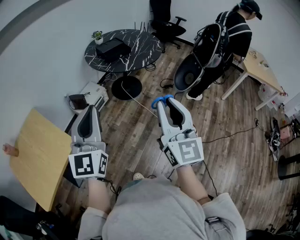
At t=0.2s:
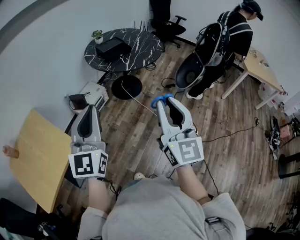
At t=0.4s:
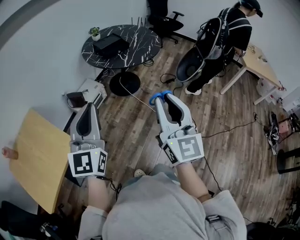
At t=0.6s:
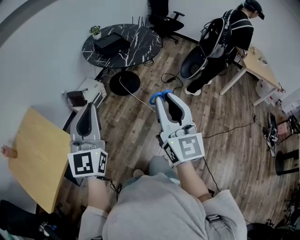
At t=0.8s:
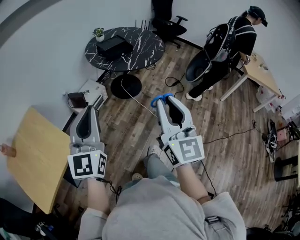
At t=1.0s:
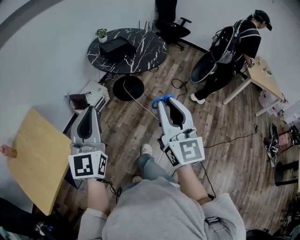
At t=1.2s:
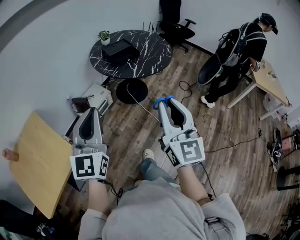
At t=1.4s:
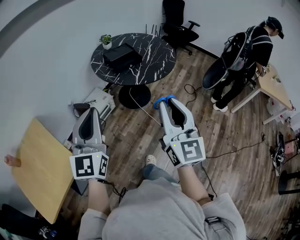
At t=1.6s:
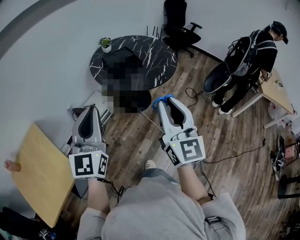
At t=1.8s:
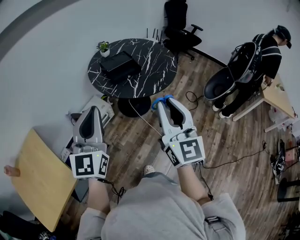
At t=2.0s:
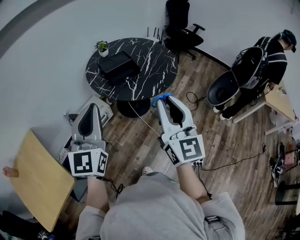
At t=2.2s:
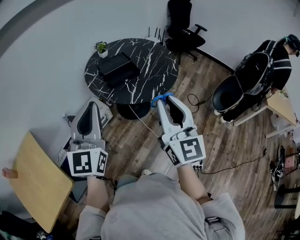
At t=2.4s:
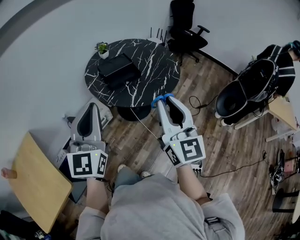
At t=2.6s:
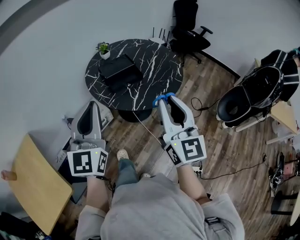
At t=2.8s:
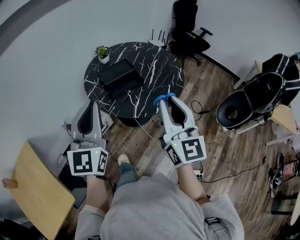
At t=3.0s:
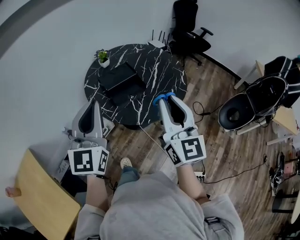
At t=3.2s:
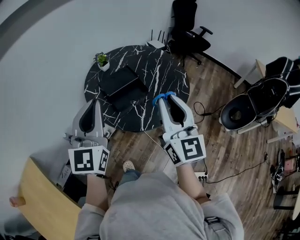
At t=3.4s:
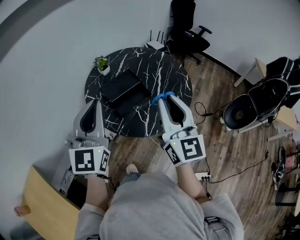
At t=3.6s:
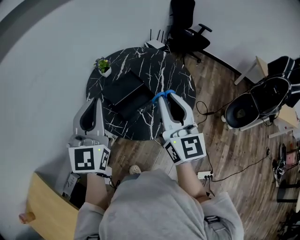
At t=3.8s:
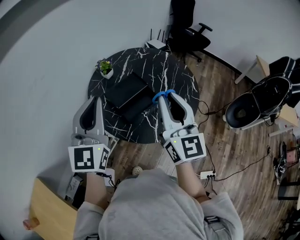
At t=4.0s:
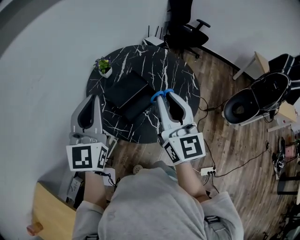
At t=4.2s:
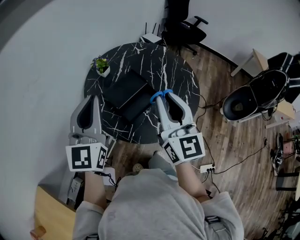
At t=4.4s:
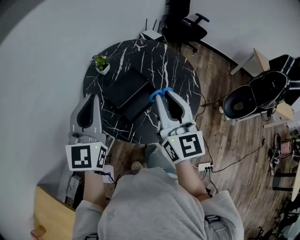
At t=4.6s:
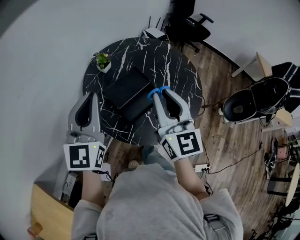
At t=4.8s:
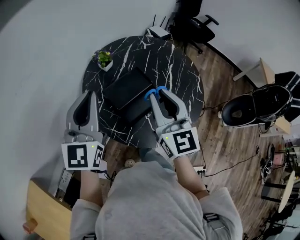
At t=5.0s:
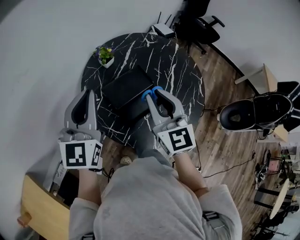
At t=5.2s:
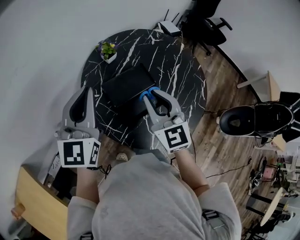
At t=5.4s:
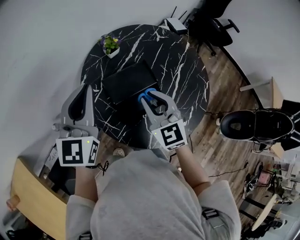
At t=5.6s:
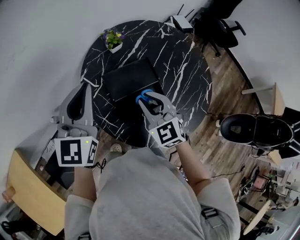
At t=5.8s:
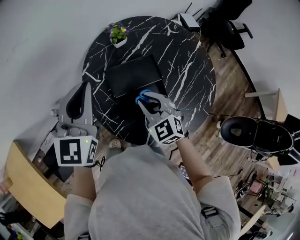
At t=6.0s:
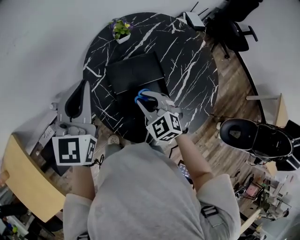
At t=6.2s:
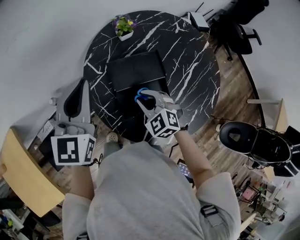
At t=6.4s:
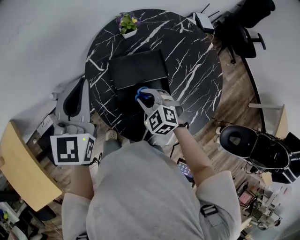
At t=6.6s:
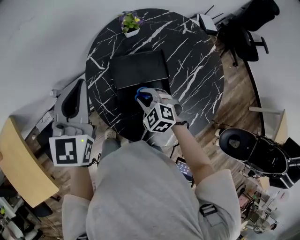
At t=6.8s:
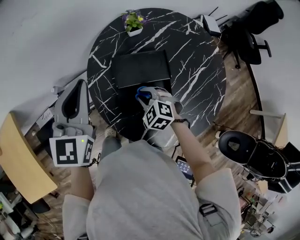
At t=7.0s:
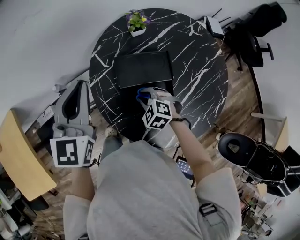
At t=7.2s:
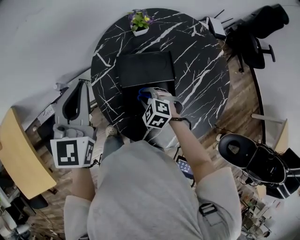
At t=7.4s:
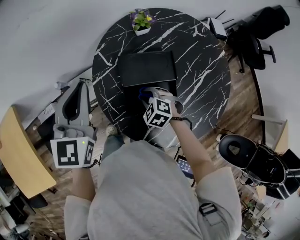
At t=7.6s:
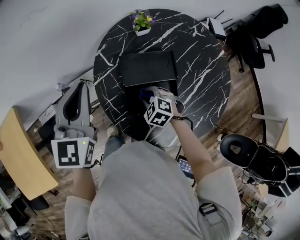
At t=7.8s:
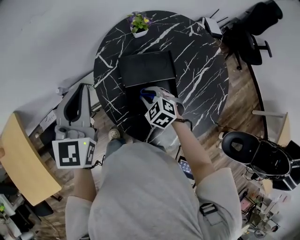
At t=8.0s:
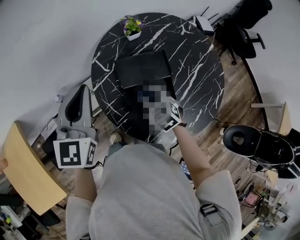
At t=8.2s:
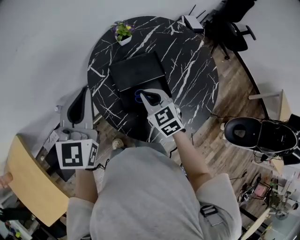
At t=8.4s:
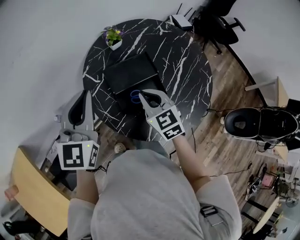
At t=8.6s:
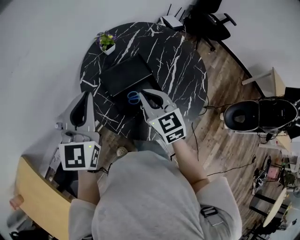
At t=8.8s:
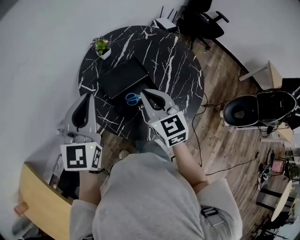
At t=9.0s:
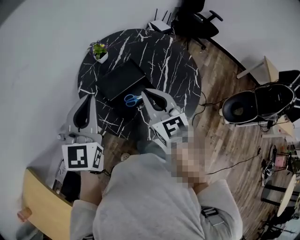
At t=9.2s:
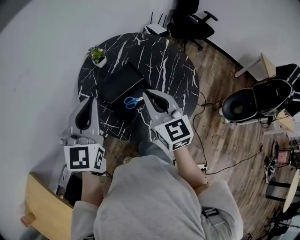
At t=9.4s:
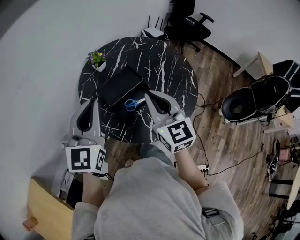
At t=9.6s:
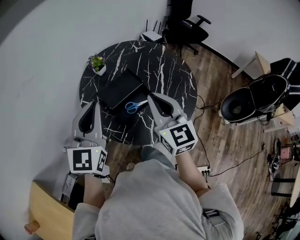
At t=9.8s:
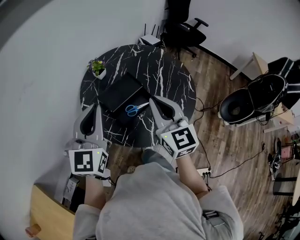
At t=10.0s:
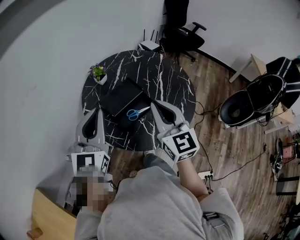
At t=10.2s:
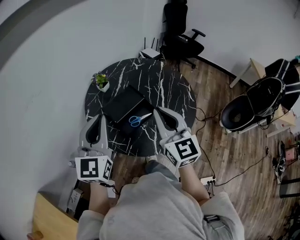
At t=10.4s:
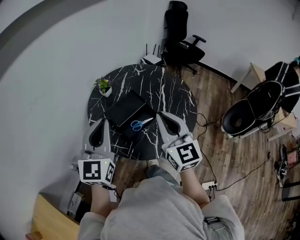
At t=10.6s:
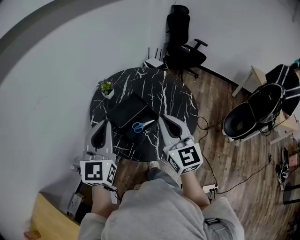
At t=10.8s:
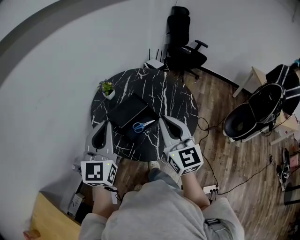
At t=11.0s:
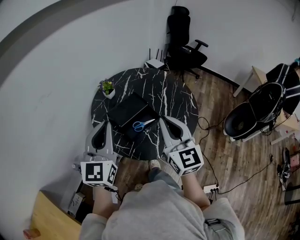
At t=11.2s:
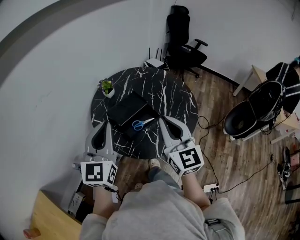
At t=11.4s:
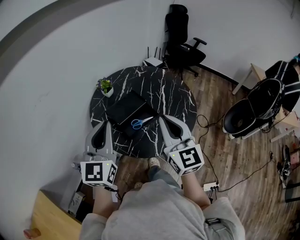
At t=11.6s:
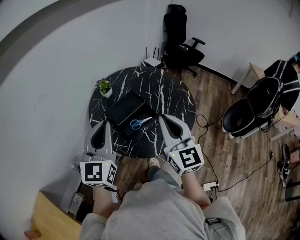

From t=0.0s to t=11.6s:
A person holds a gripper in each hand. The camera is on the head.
From t=0.0s to t=1.4s: The two grippers go some 15 cm forward.
From t=1.4s to t=2.8s: The grippers both shift forward by approximately 30 cm.
From t=2.8s to t=4.4s: The grippers both shift forward and to the left by about 30 cm.
From t=4.4s to t=5.8s: The left gripper moves downward, approximately 5 cm, and rotates about 20 degrees; the right gripper shifts approximately 25 cm downward, and tips its fingers downward by about 40 degrees.
From t=5.8s to t=7.2s: The right gripper goes approximately 15 cm downward, and angles its fingers downward, by some 30 degrees.
From t=7.2s to t=8.8s: The left gripper ends up some 10 cm from where it was, and rotates some 30 degrees. Meanwhile the right gripper goes about 25 cm upward, and tips its fingers upward by about 50 degrees.
From t=8.8s to t=10.2s: The right gripper is displaced upward and backward by approximately 15 cm, and swivels about 20 degrees.
From t=10.2s to t=11.6s: The left gripper moves about 5 cm; the right gripper heads backward, covering some 5 cm.

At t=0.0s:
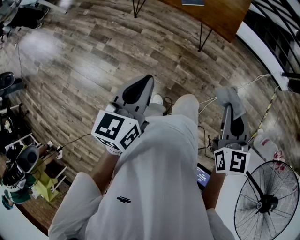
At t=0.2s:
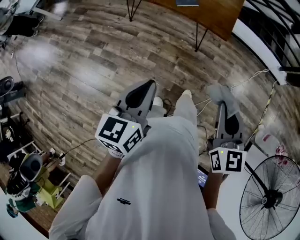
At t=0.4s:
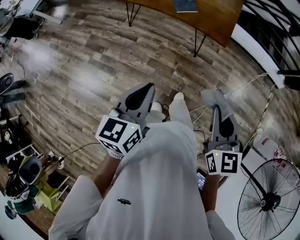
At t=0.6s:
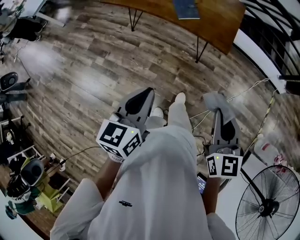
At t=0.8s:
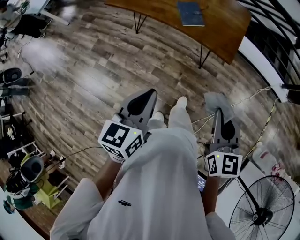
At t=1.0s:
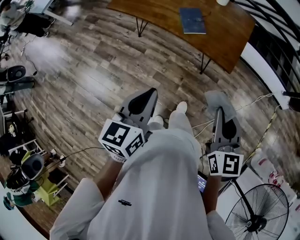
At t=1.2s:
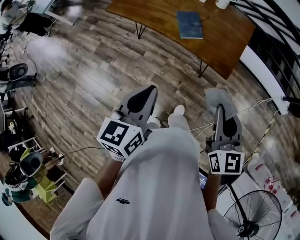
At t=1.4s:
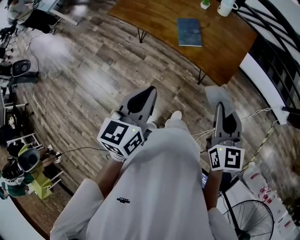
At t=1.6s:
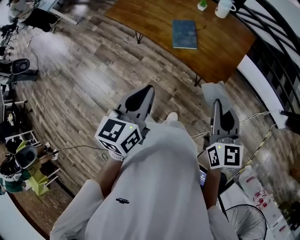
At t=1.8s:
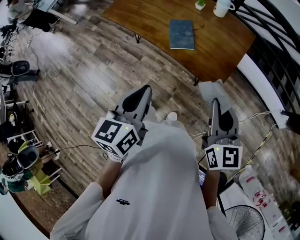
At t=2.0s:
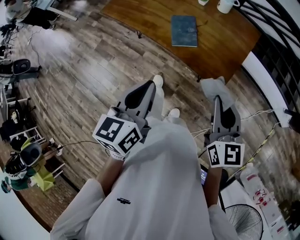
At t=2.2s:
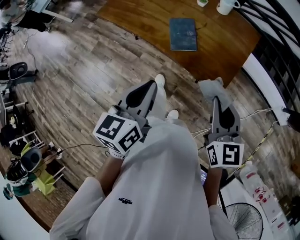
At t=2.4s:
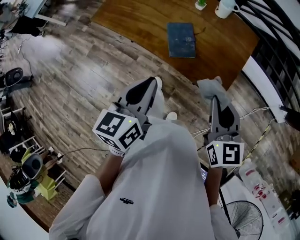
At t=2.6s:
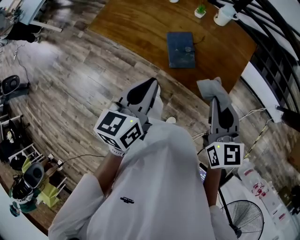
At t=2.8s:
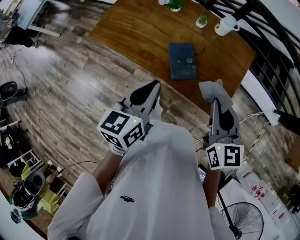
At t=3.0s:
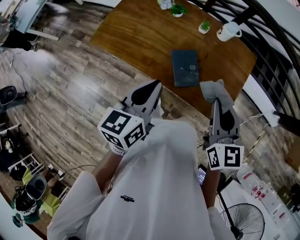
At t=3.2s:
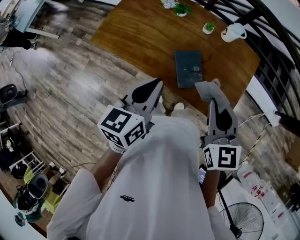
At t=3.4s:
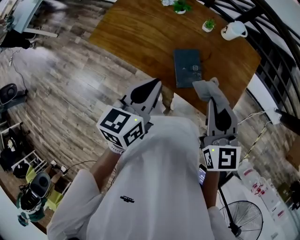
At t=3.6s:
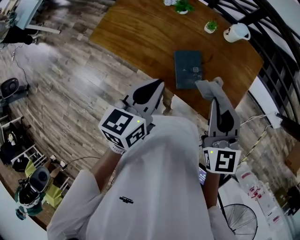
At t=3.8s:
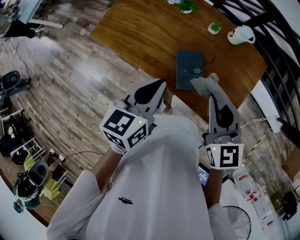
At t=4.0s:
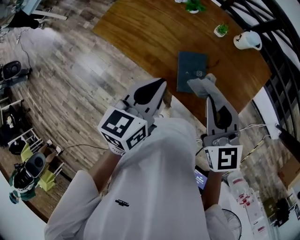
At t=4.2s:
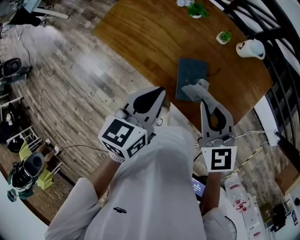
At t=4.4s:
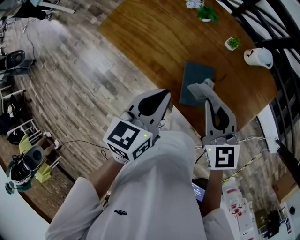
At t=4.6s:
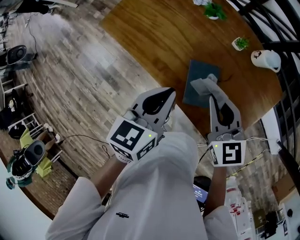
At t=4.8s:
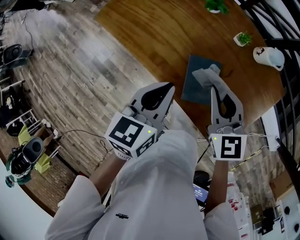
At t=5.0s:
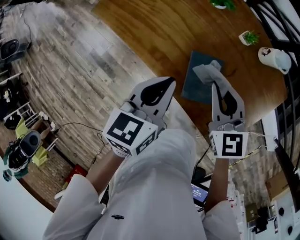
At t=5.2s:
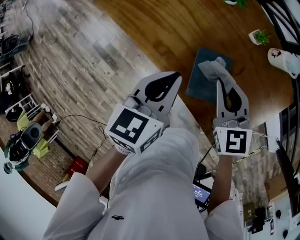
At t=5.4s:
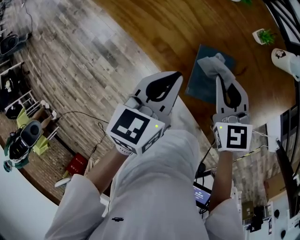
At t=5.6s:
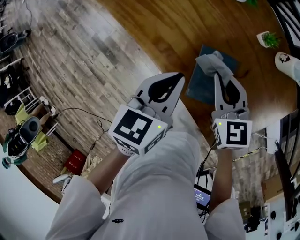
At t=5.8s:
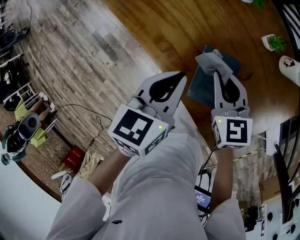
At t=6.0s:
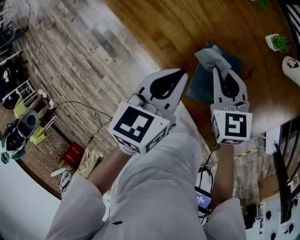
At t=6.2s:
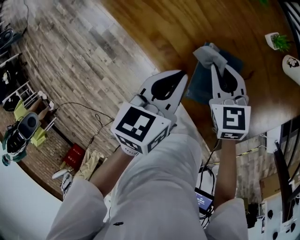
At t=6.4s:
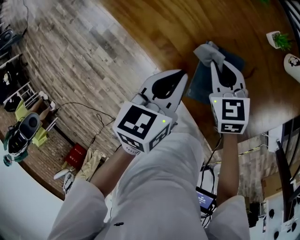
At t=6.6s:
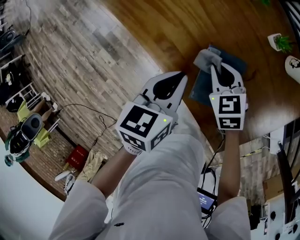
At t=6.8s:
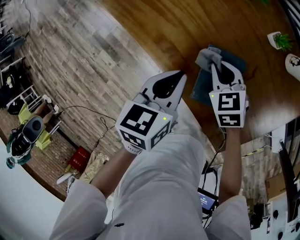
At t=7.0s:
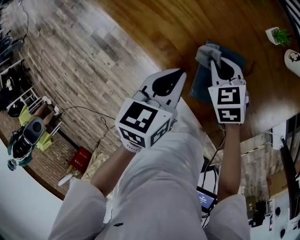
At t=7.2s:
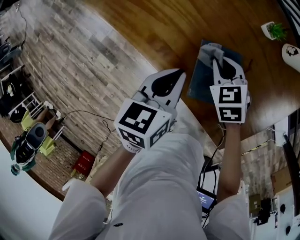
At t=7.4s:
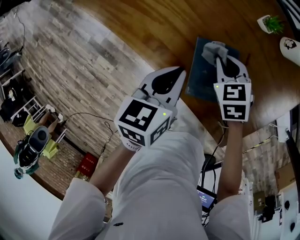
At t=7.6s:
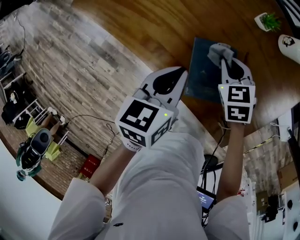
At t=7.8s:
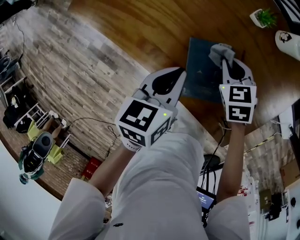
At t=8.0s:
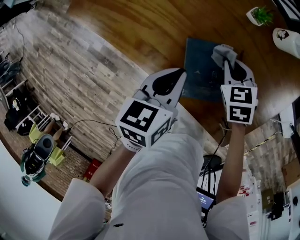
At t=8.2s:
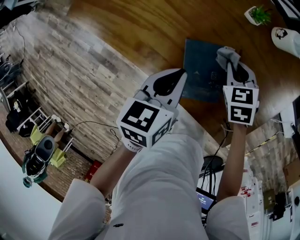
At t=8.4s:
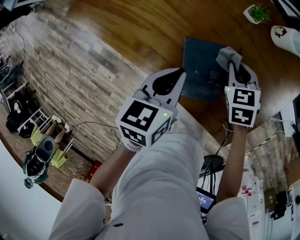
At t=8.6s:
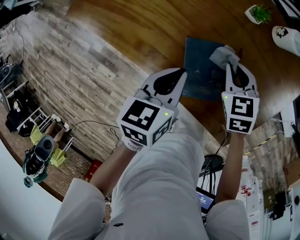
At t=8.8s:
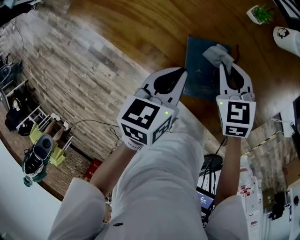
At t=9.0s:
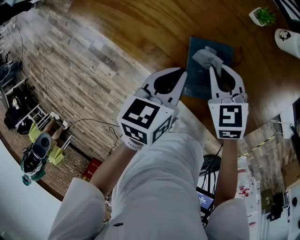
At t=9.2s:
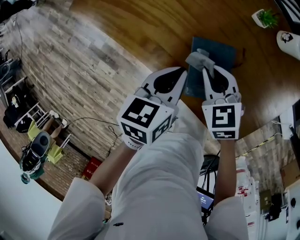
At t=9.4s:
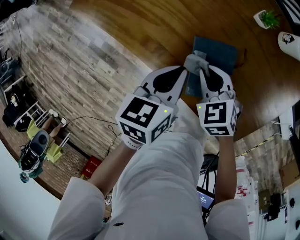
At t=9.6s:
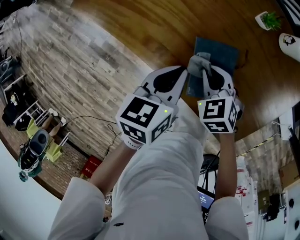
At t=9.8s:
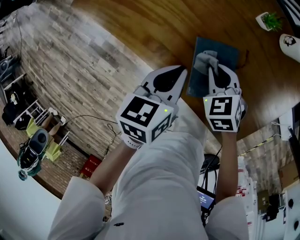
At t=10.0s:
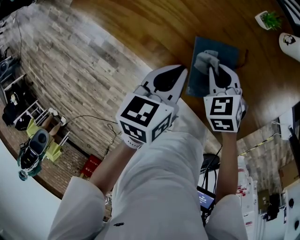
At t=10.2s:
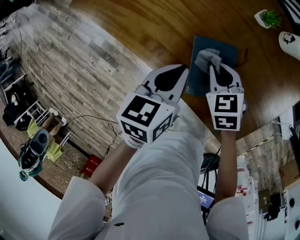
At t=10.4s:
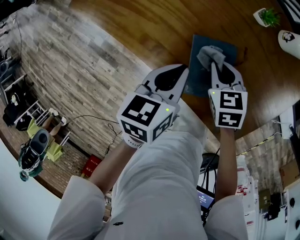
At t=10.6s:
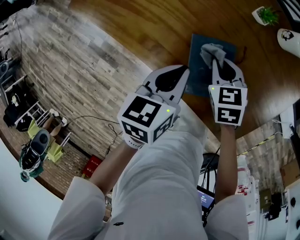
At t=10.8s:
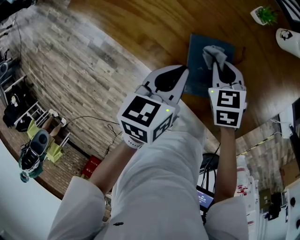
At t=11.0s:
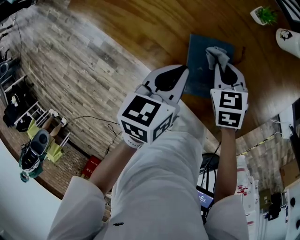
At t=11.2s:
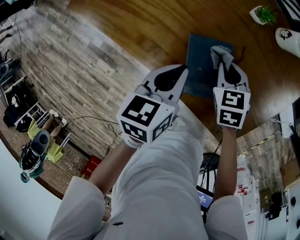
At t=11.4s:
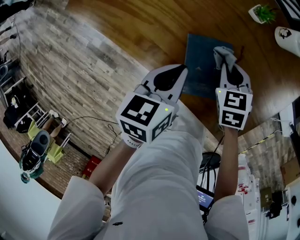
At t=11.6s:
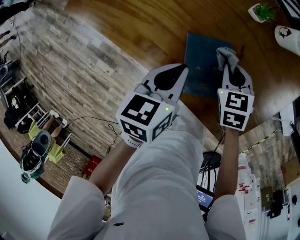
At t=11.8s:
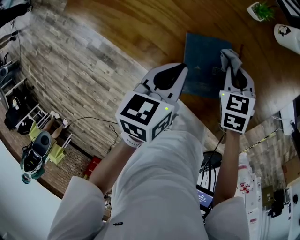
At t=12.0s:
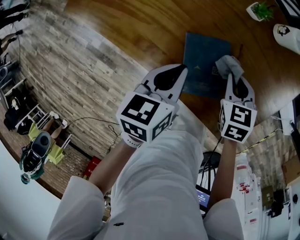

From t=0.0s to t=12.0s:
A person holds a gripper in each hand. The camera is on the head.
From t=0.0s to t=1.6s: Both grippers travel together forward, roughly 25 cm.
From t=1.6s to t=3.0s: The right gripper moves forward and to the left, approximately 25 cm, while the left gripper goes about 25 cm forward.
From t=3.0s to t=4.4s: The two grippers go some 15 cm forward and downward. The right gripper turns by some 30 degrees.
From t=4.4s to t=6.0s: Both grippers move downward, about 15 cm.
From t=6.0s to t=7.6s: The right gripper moves downward and to the right, about 10 cm, and rotates approximately 20 degrees.
From t=7.6s to t=9.0s: The right gripper goes to the right and returns, roughly 5 cm each way.
From t=9.0s to t=10.4s: The grippers make only small movements.
From t=10.4s to t=12.0s: The right gripper shifts some 10 cm to the right.
